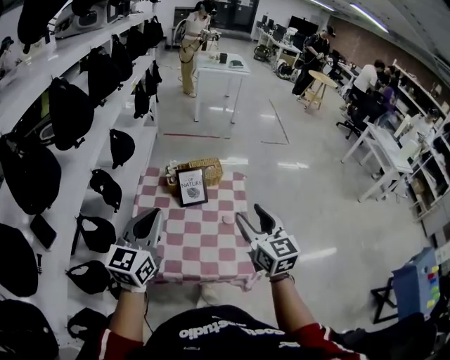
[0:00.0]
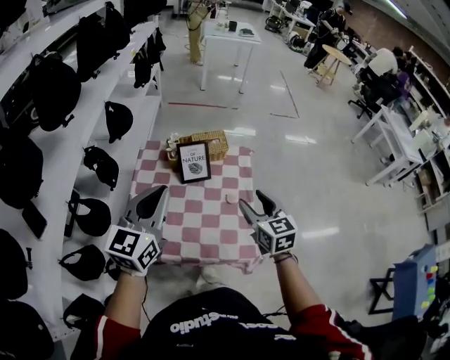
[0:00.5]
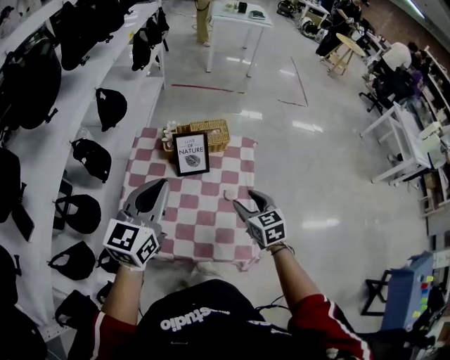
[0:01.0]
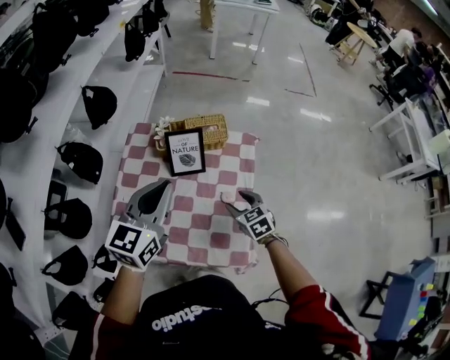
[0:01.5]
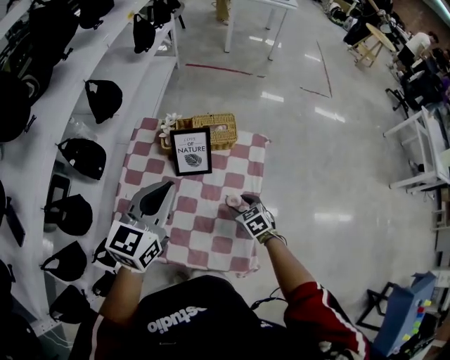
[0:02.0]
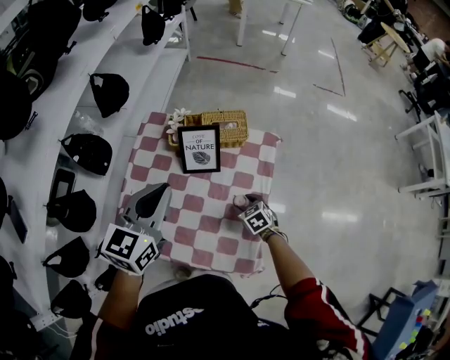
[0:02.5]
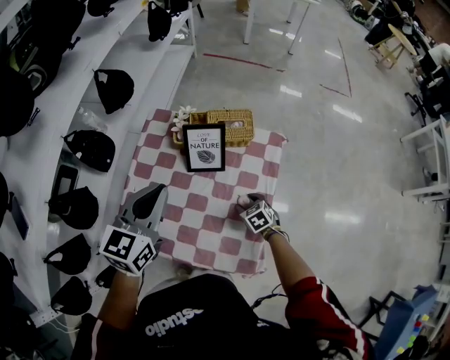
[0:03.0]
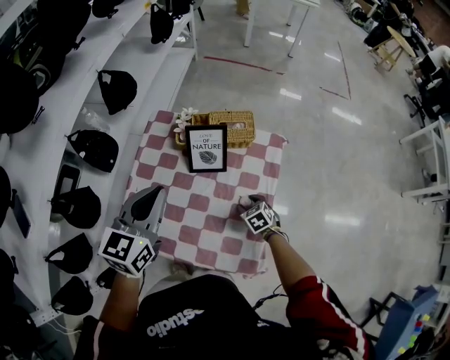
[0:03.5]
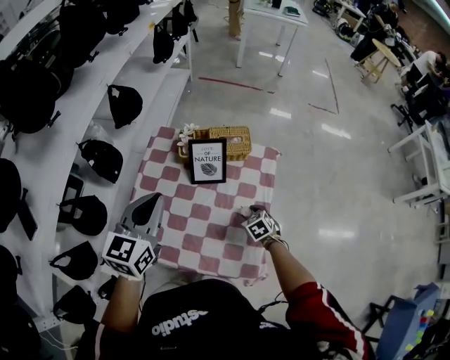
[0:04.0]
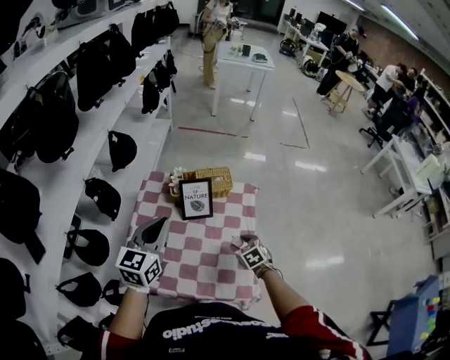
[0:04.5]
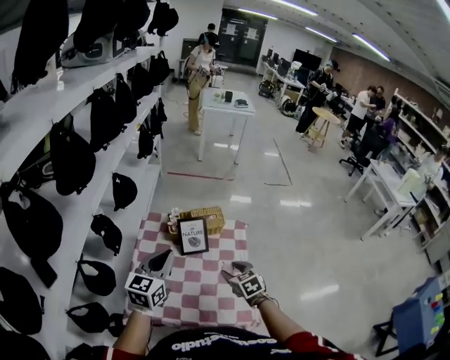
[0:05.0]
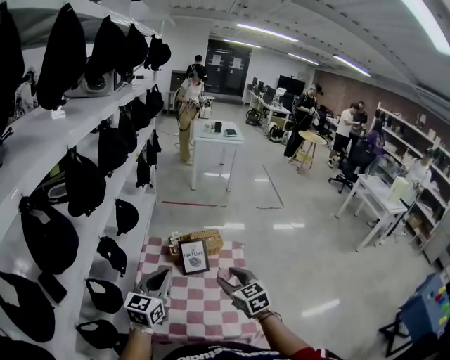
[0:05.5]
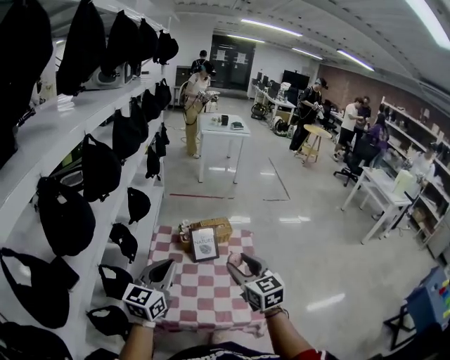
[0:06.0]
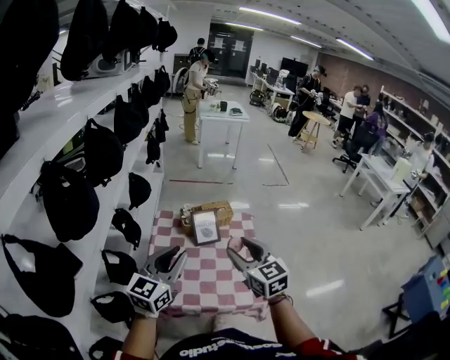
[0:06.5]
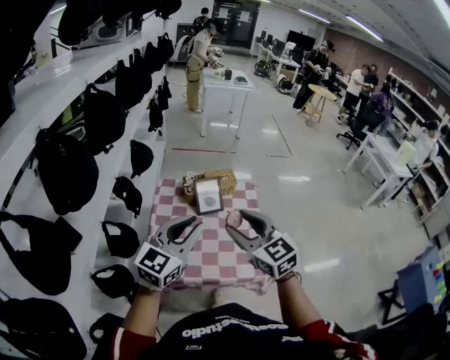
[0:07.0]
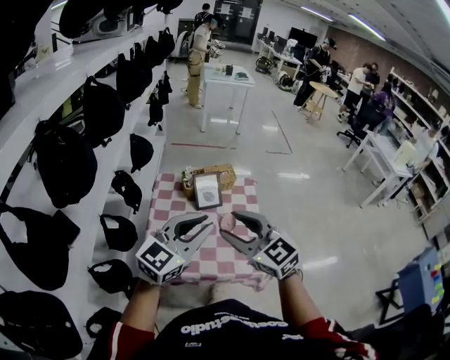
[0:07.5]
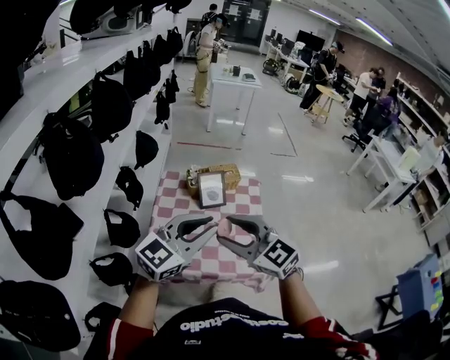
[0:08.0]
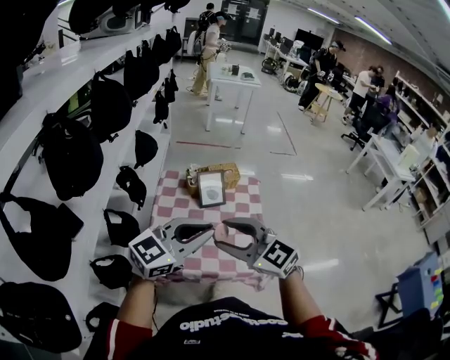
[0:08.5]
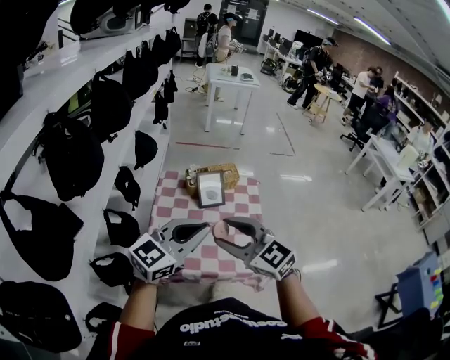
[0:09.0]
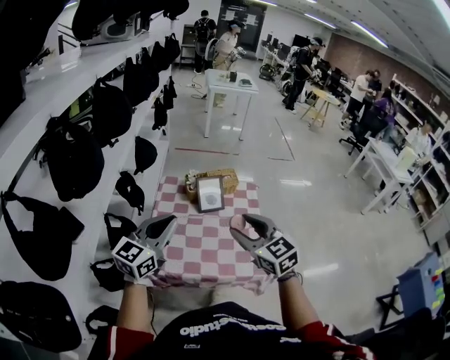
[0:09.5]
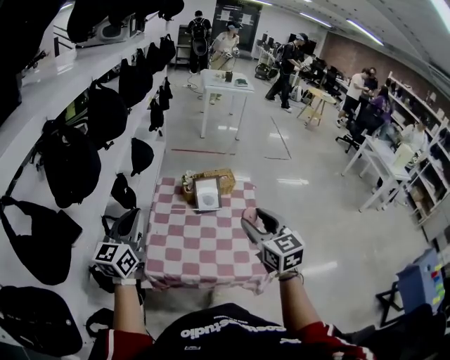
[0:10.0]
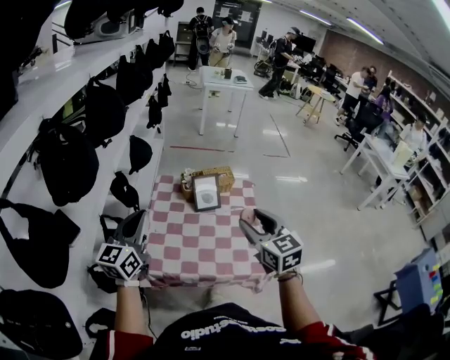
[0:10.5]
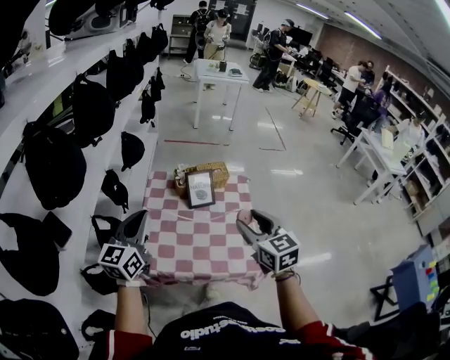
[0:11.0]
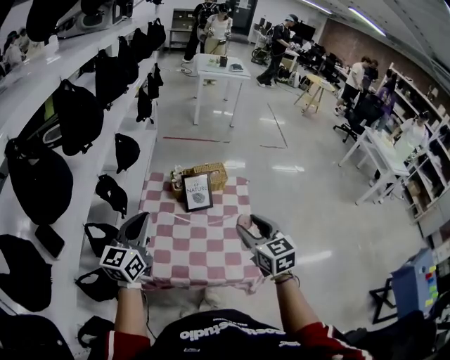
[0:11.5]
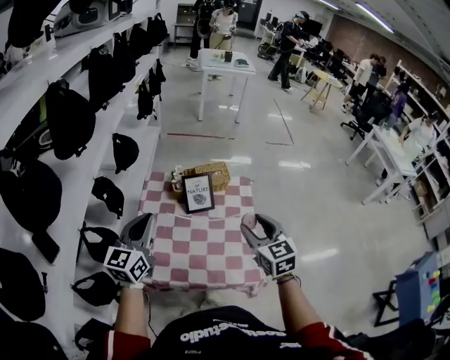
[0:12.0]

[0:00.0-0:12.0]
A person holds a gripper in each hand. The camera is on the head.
0:00.0 to 0:02.0: The right gripper goes about 40 cm downward, and tilts its fingers some 40 degrees downward. The left gripper heads forward, to the right and downward, covering approximately 20 cm.
0:02.0 to 0:04.0: The left gripper goes roughly 10 cm to the left.
0:04.0 to 0:06.0: The left gripper moves backward, upward and to the left, some 15 cm, and turns by roughly 20 degrees. Meanwhile the right gripper travels upward by roughly 40 cm, and tilts its fingers some 50 degrees upward.
0:06.0 to 0:08.0: The left gripper moves to the right and backward, roughly 10 cm, and swivels about 30 degrees. Meanwhile the right gripper shifts roughly 15 cm backward and to the left, and turns by about 30 degrees.
0:08.0 to 0:10.0: The left gripper goes some 20 cm to the left, and rotates approximately 40 degrees. The right gripper goes some 10 cm to the right and forward, and swivels about 30 degrees.
0:10.0 to 0:12.0: The right gripper is displaced downward, forward and to the right by approximately 15 cm. Meanwhile the left gripper travels to the right, forward and downward by about 15 cm.

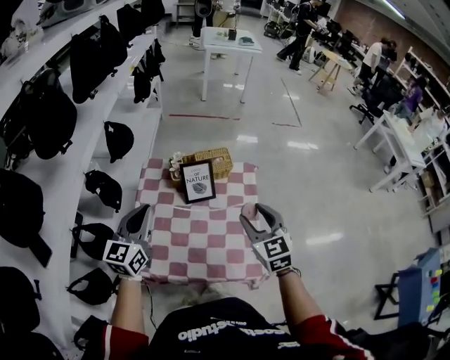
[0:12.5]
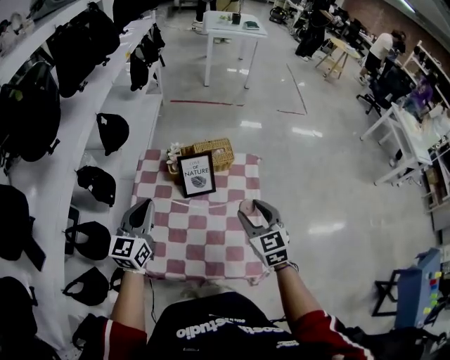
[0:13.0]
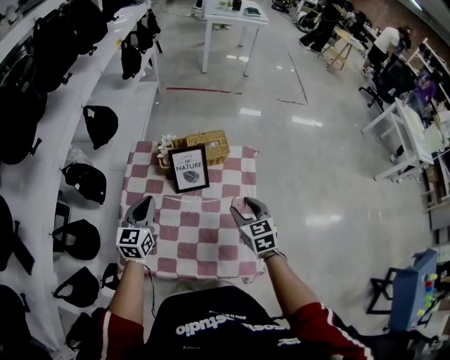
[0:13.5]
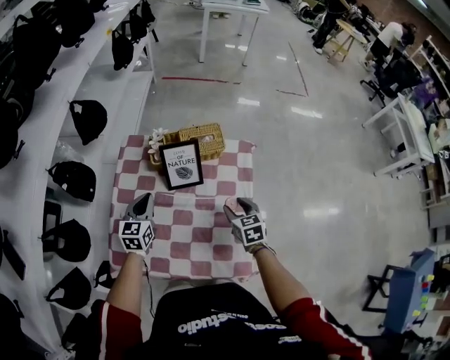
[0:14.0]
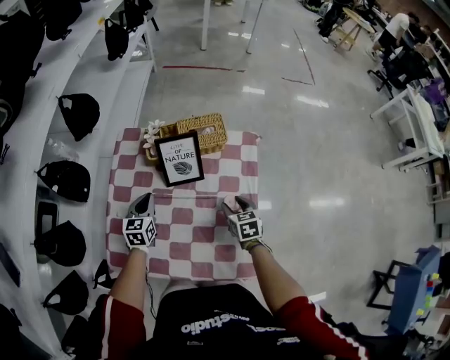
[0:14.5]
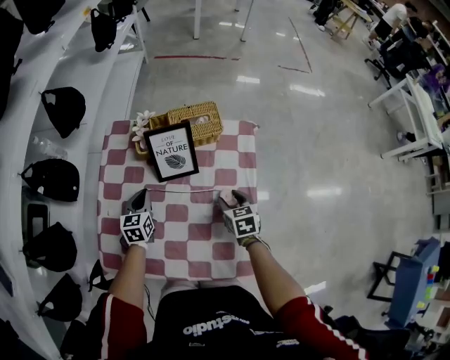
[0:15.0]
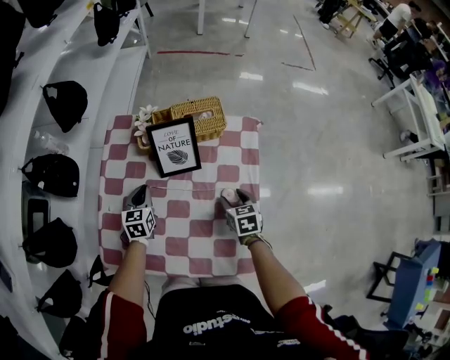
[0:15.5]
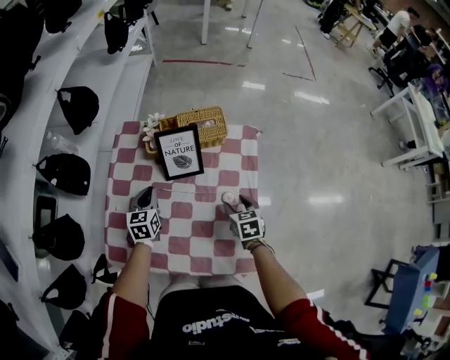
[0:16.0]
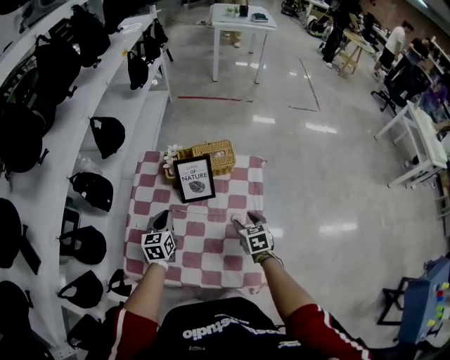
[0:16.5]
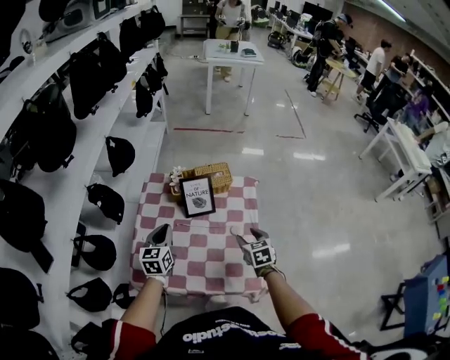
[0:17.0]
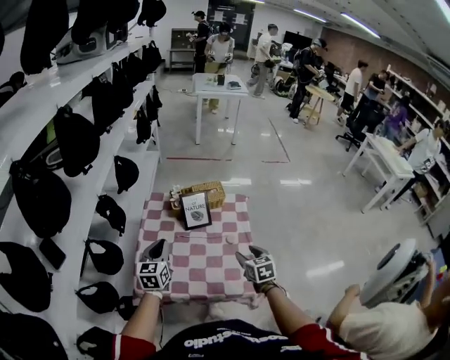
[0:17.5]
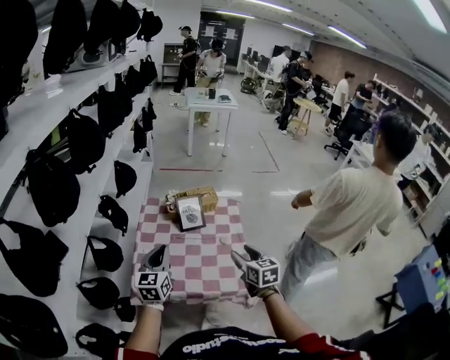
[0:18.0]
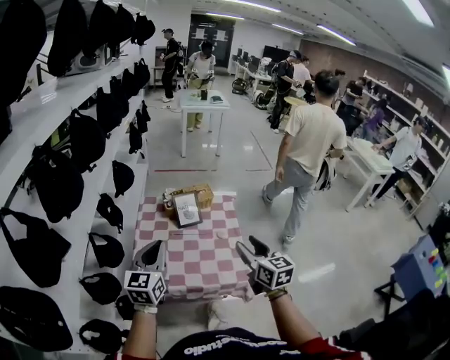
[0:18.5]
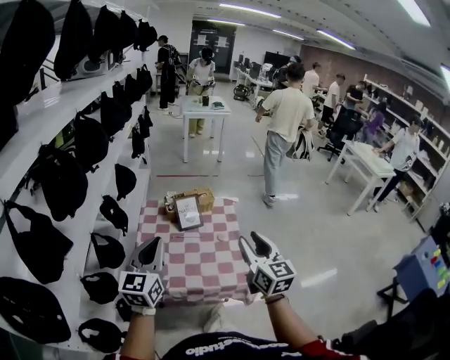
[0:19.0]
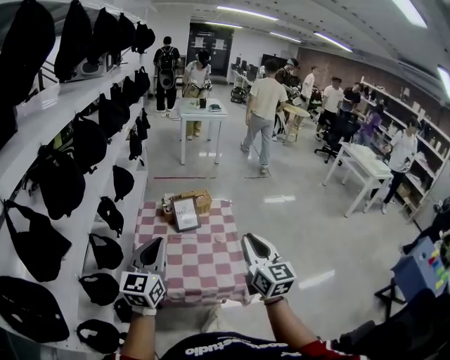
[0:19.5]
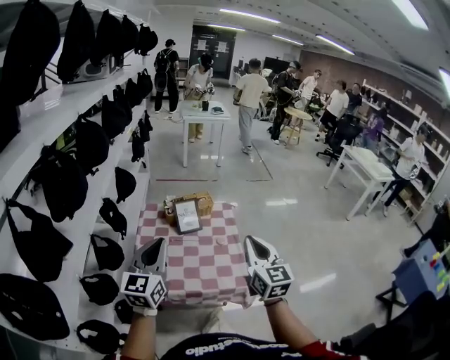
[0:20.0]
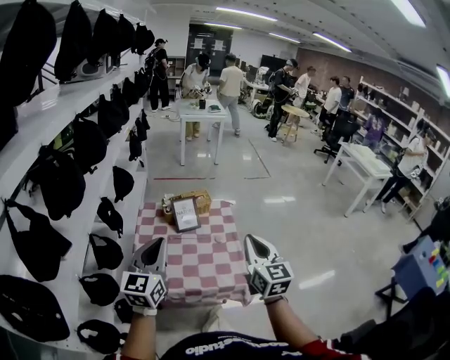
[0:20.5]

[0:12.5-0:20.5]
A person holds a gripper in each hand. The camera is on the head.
0:12.5 to 0:14.5: The grippers both shift downward by some 30 cm. The right gripper turns by roughly 30 degrees, while the left gripper changes its angle by roughly 30 degrees.
0:14.5 to 0:16.5: Both grippers travel together upward, some 5 cm.
0:16.5 to 0:18.5: The two grippers go some 40 cm upward and backward. The left gripper changes its angle by roughly 30 degrees. Meanwhile the right gripper tilts its fingers about 40 degrees upward.
0:18.5 to 0:20.5: The grippers both shift upward by roughly 5 cm. The right gripper closes up.

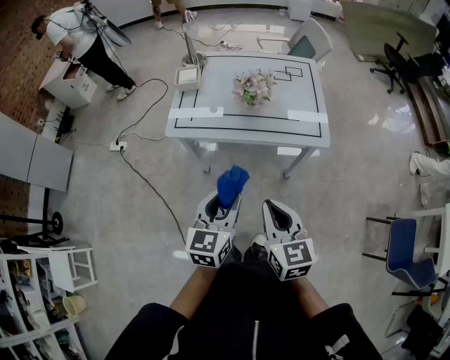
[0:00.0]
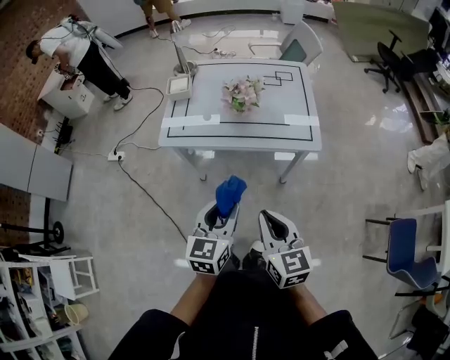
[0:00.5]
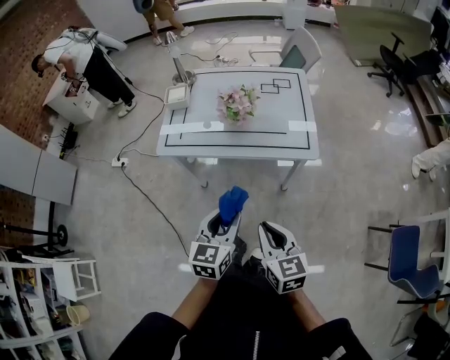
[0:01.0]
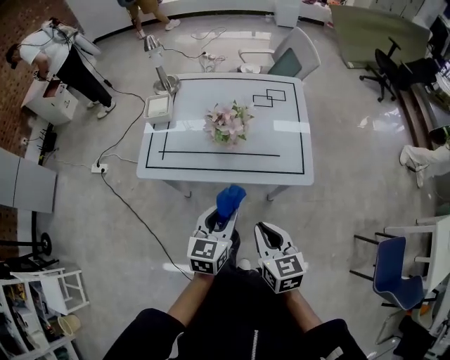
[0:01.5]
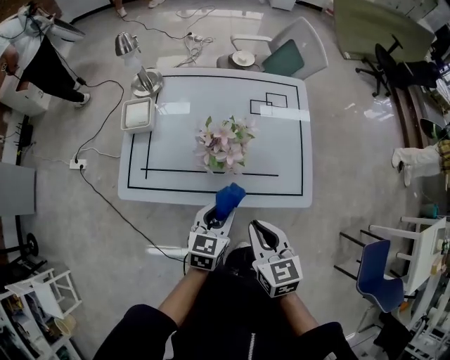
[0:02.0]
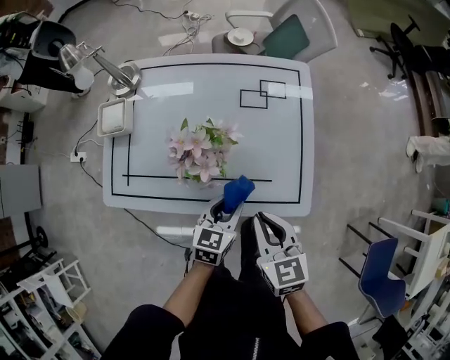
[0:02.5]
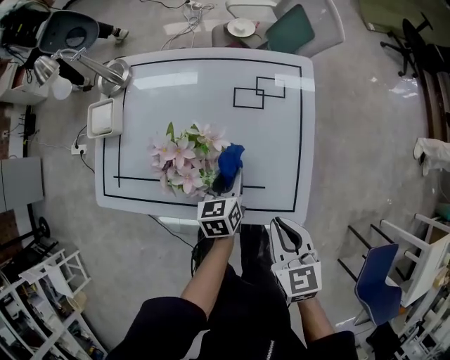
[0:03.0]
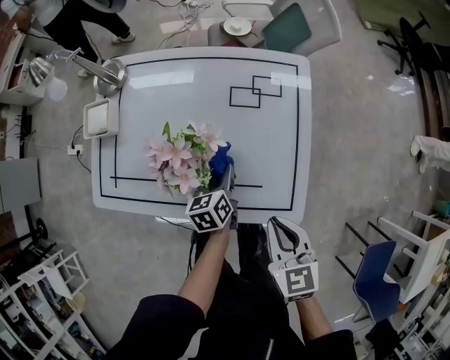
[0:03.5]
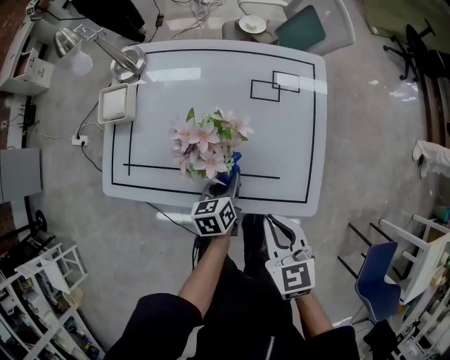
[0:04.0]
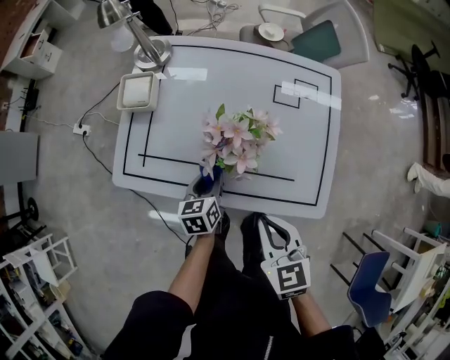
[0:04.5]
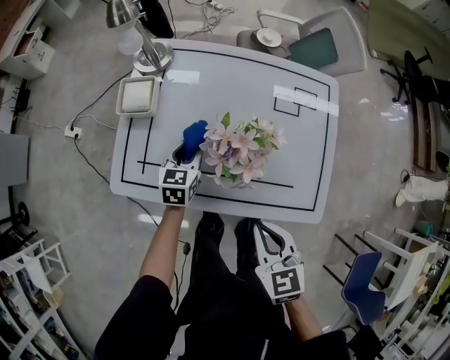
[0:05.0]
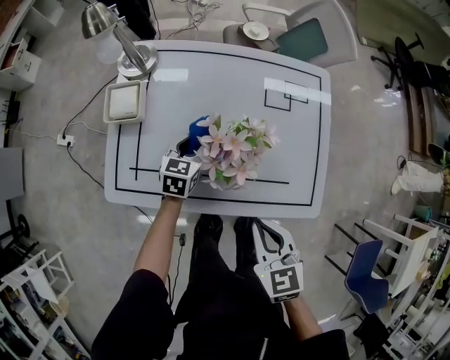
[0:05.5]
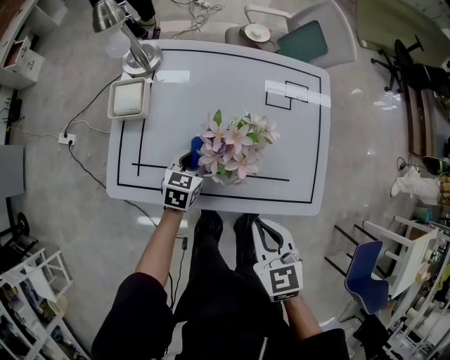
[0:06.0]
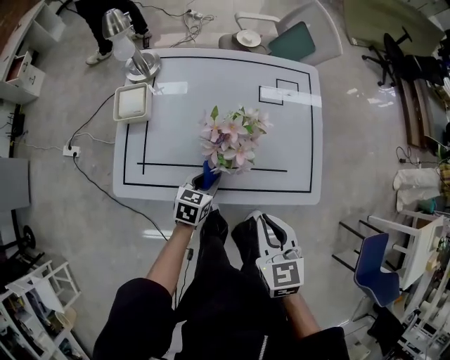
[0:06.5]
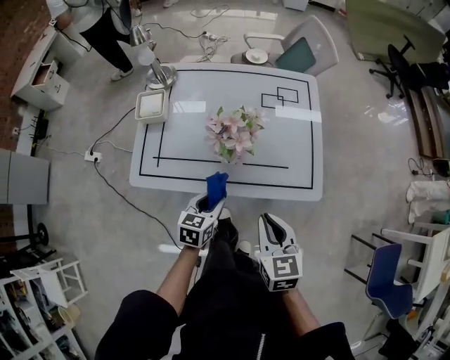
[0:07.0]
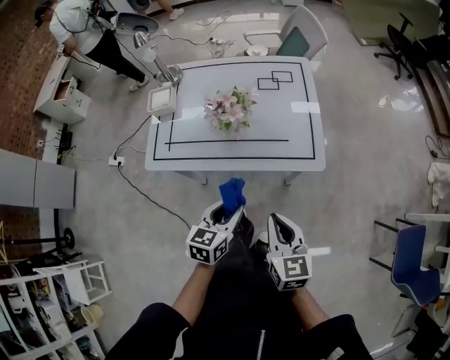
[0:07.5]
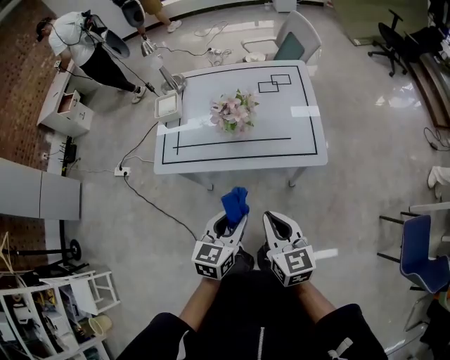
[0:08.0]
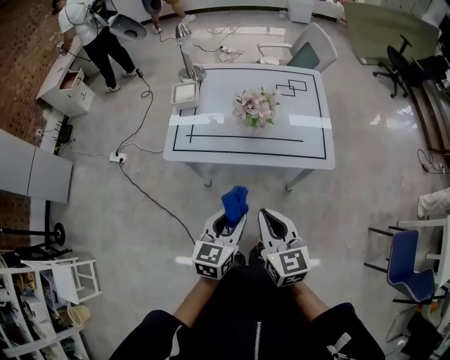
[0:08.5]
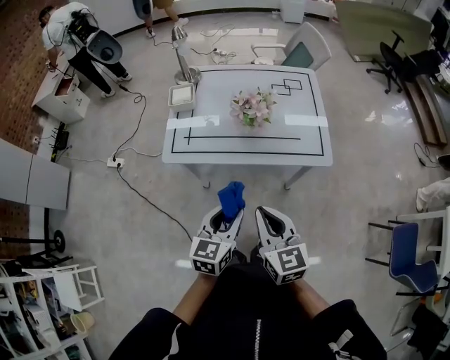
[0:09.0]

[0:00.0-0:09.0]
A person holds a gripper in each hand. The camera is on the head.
0:00.0 to 0:02.0: The left gripper is displaced forward and downward by some 30 cm; the right gripper shifts approximately 25 cm forward.
0:02.0 to 0:04.5: The right gripper is displaced forward by approximately 5 cm, and reaches some 15 cm to the right, then returns. Meanwhile the left gripper shifts roughly 15 cm downward and forward, goes to the right and returns, about 10 cm each way, and rotates approximately 30 degrees.
0:04.5 to 0:07.0: The right gripper moves backward, about 10 cm. Meanwhile the left gripper shifts some 10 cm backward and upward, and swivels some 30 degrees.
0:07.0 to 0:09.0: The right gripper heads backward, to the left and upward, covering about 20 cm; the left gripper moves backward and upward, about 25 cm.
